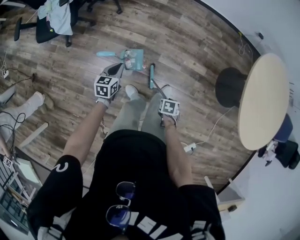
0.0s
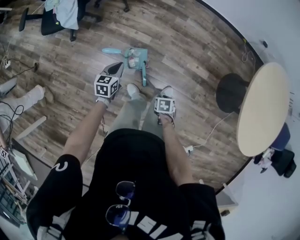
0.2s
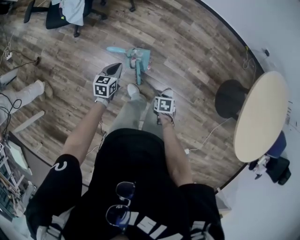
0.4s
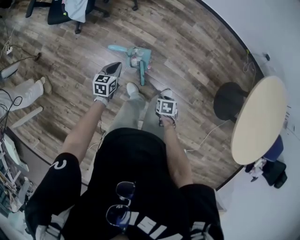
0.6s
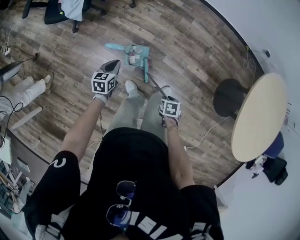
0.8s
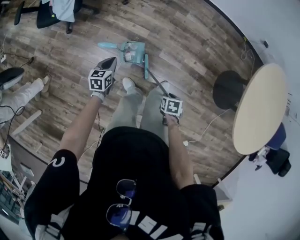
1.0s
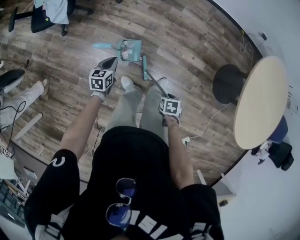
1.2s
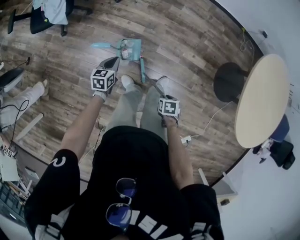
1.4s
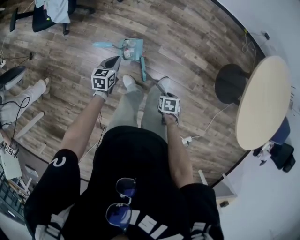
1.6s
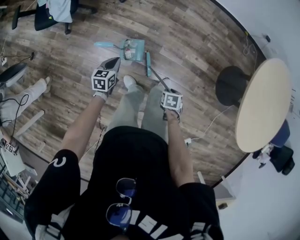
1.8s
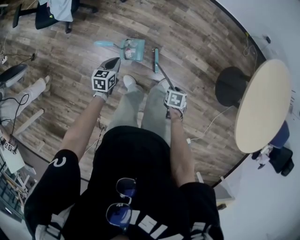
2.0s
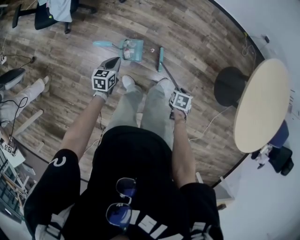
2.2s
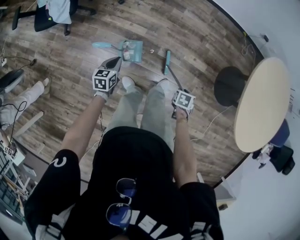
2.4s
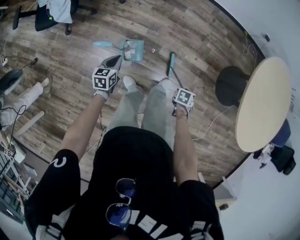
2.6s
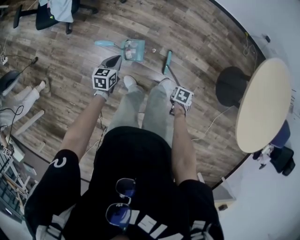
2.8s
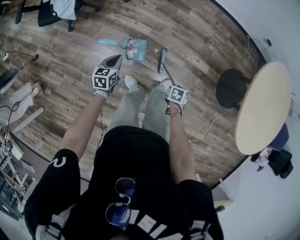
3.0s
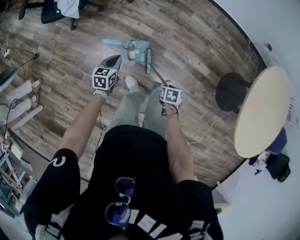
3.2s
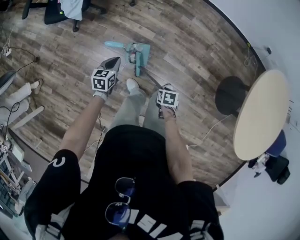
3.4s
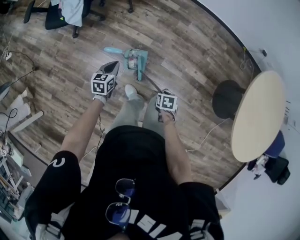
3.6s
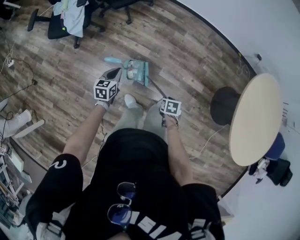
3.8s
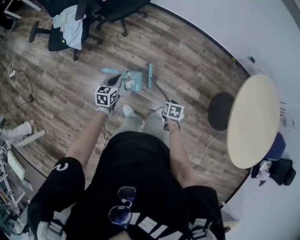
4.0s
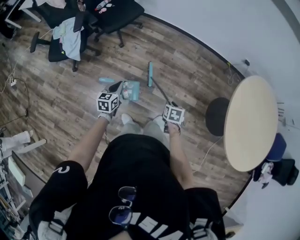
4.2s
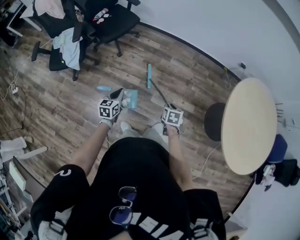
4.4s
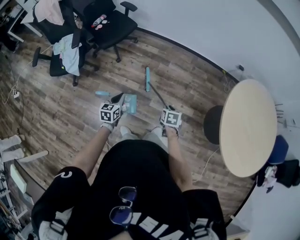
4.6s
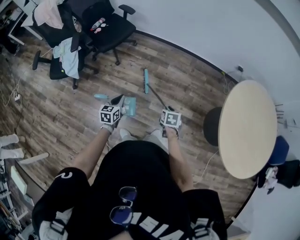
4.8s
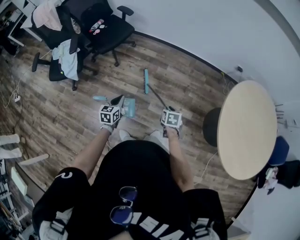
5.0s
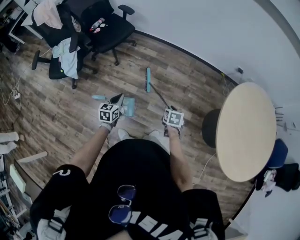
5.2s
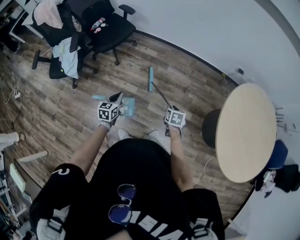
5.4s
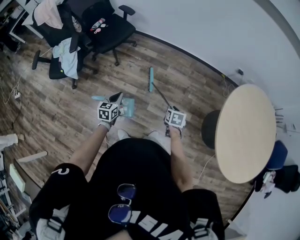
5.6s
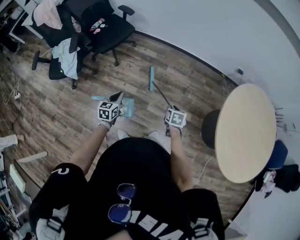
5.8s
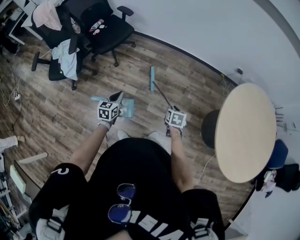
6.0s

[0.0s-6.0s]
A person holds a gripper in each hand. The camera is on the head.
3.0s to 4.4s: Both grippers travel together upward, some 15 cm. The right gripper changes its angle by roughly 30 degrees.
4.4s to 6.0s: The left gripper shifts approximately 10 cm forward and to the right. Meanwhile the right gripper goes some 10 cm to the right and forward.

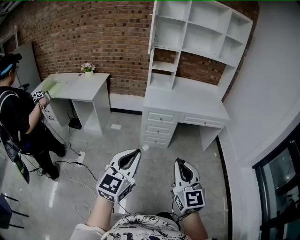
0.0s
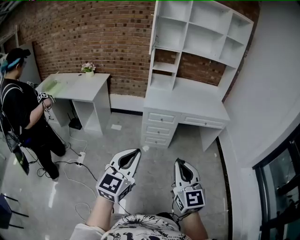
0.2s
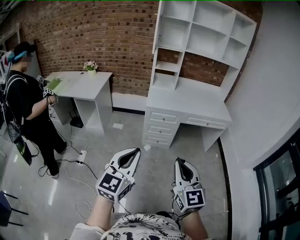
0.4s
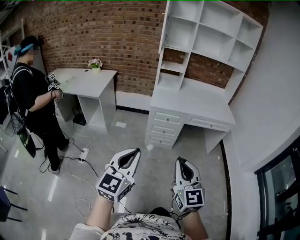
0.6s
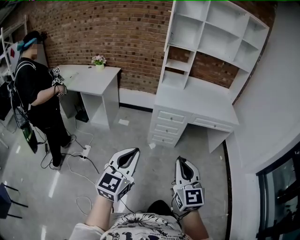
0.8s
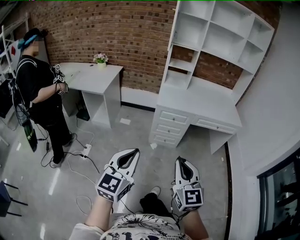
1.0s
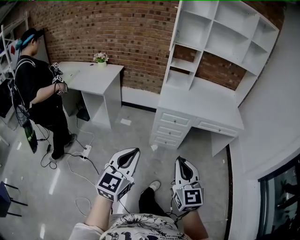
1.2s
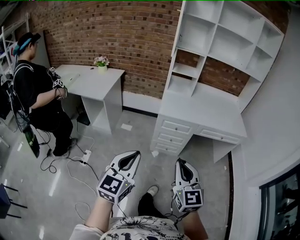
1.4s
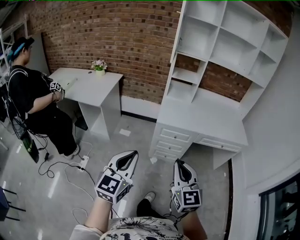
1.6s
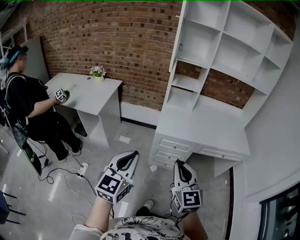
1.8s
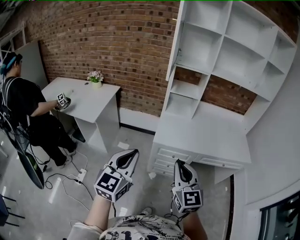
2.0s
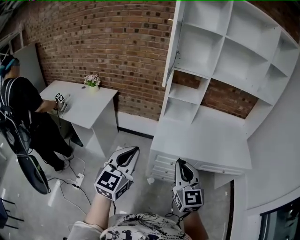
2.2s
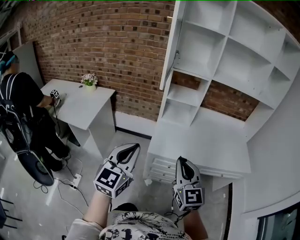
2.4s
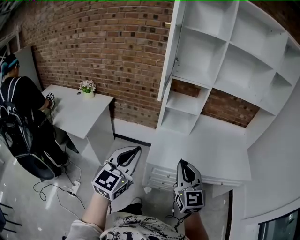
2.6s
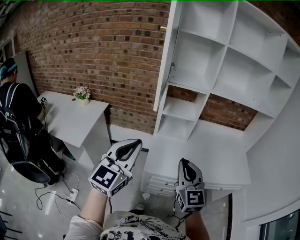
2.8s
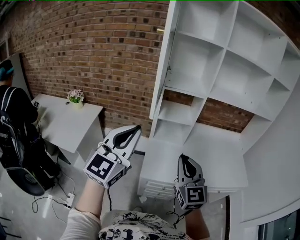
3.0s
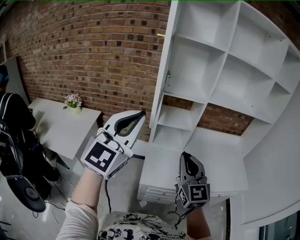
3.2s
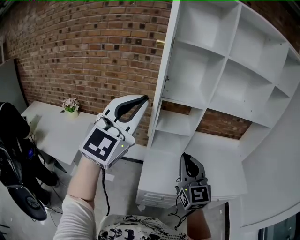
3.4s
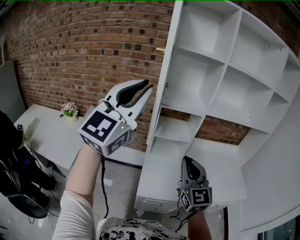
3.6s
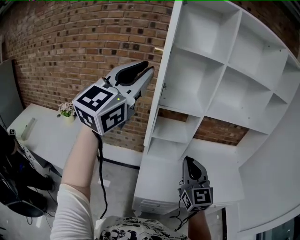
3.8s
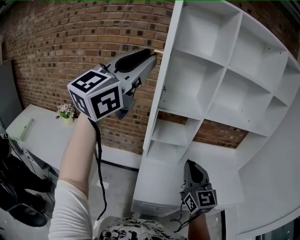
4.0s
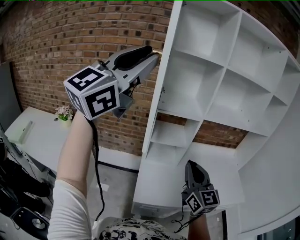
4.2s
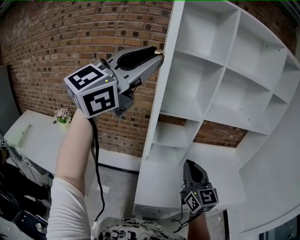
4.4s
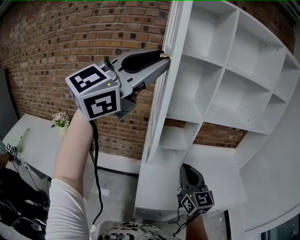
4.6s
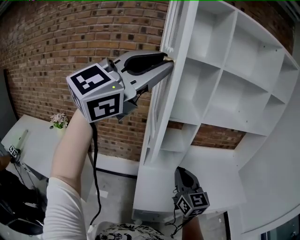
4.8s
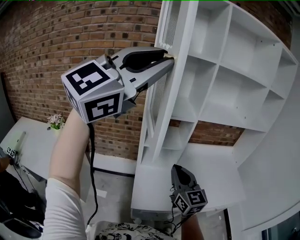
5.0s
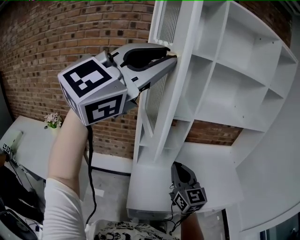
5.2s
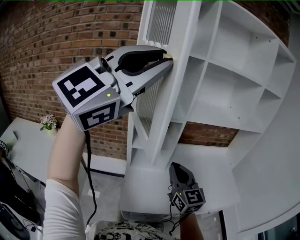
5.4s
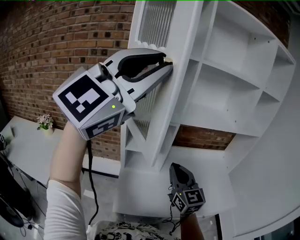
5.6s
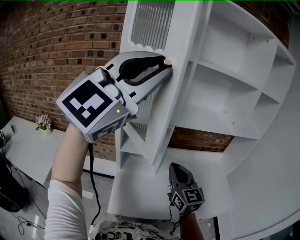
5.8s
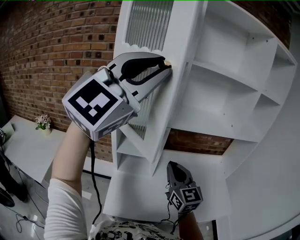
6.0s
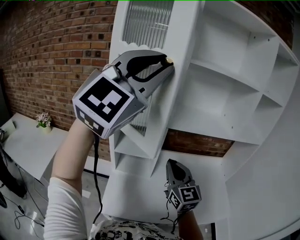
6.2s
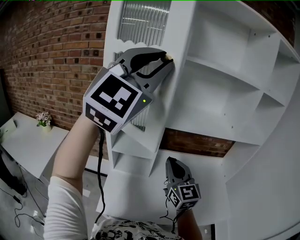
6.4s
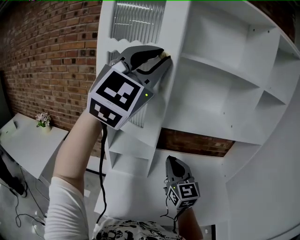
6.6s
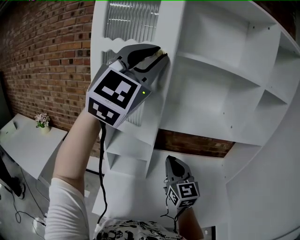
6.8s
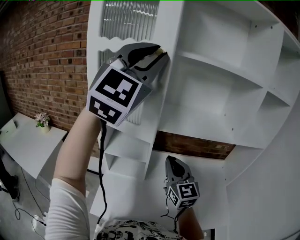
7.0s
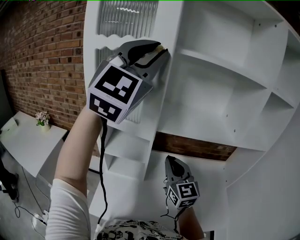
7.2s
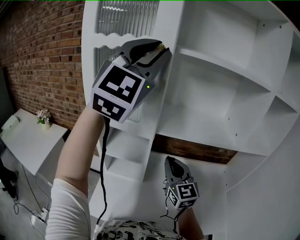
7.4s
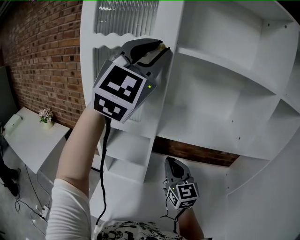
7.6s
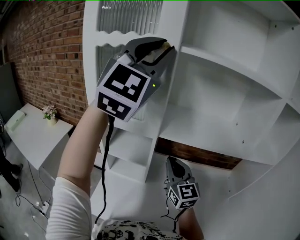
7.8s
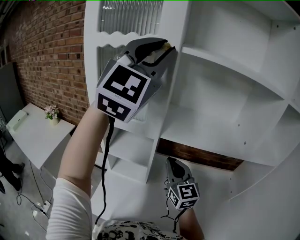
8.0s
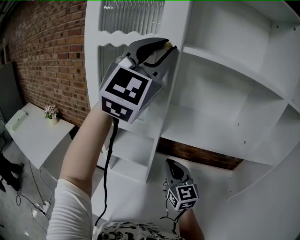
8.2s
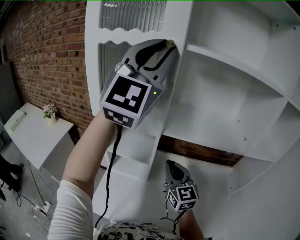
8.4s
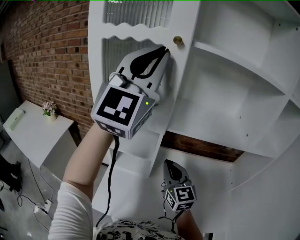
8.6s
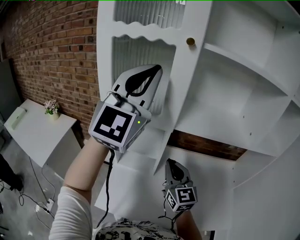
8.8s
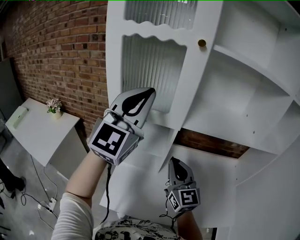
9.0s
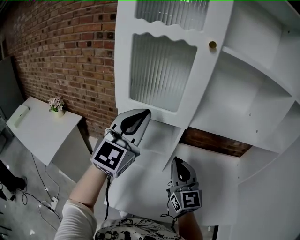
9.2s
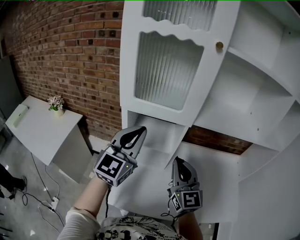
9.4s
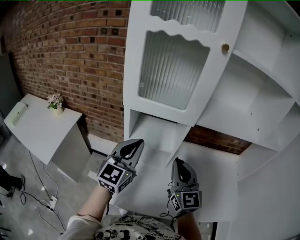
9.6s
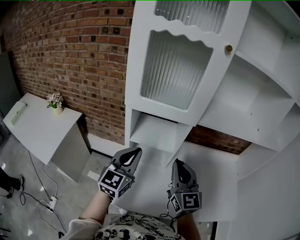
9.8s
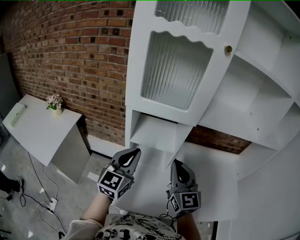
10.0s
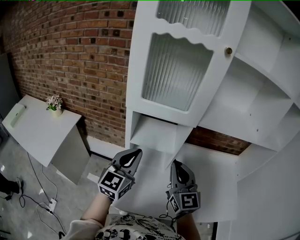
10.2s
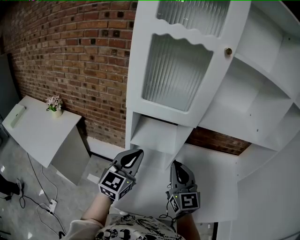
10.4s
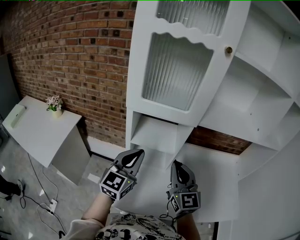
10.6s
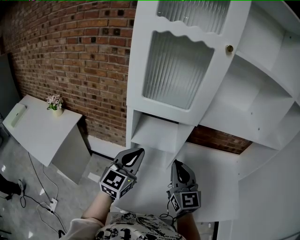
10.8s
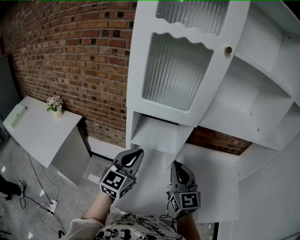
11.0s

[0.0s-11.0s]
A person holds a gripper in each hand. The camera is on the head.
0.0s to 1.6s: Both grippers move forward, roughly 25 cm.
1.6s to 3.2s: The pair of grippers is taken forward, about 50 cm. The left gripper is displaced upward by some 25 cm, and rotates roughly 30 degrees.
3.2s to 4.8s: The right gripper shifts approximately 10 cm forward, while the left gripper shifts some 20 cm upward and forward, changes its angle by about 30 degrees, and opens up.
4.8s to 6.2s: The left gripper moves to the right and forward, some 20 cm, and changes its angle by some 30 degrees; the right gripper moves forward and to the right, roughly 20 cm.
6.2s to 7.8s: The two grippers go approximately 15 cm forward and to the right.
7.8s to 9.4s: The left gripper heads downward and to the left, covering approximately 35 cm, and changes its angle by roughly 30 degrees; the right gripper heads to the left and backward, covering about 15 cm.
9.4s to 11.0s: The left gripper is displaced downward by approximately 10 cm.

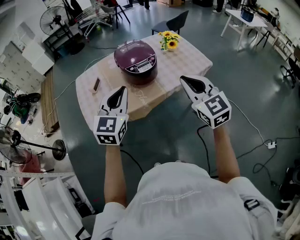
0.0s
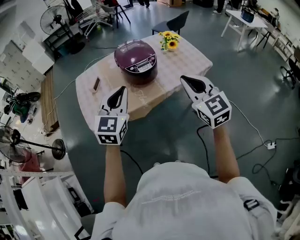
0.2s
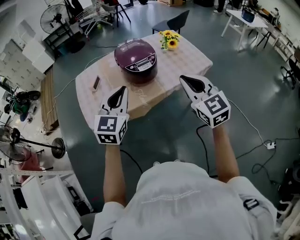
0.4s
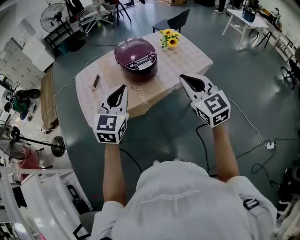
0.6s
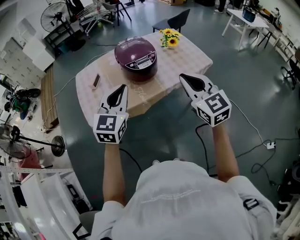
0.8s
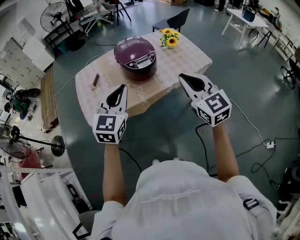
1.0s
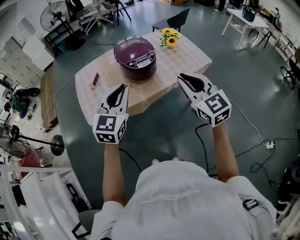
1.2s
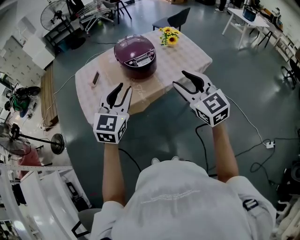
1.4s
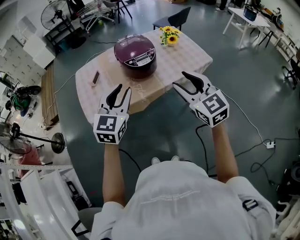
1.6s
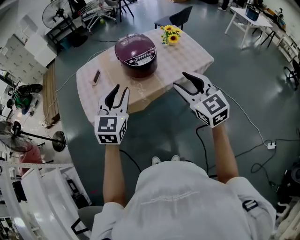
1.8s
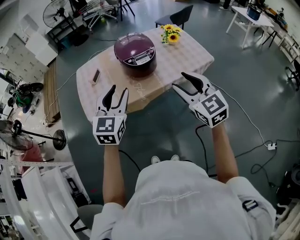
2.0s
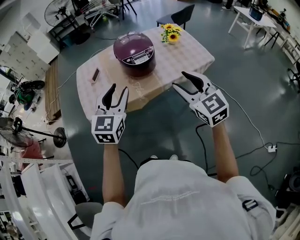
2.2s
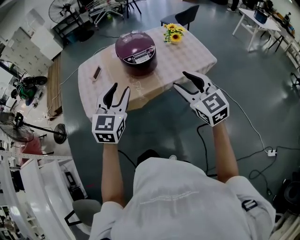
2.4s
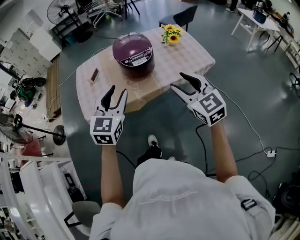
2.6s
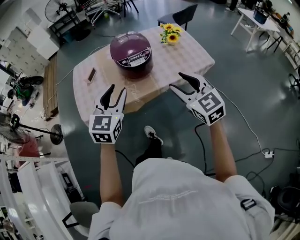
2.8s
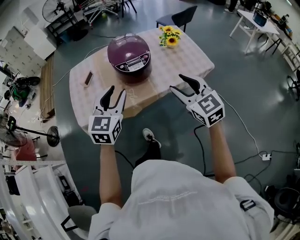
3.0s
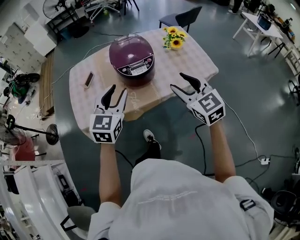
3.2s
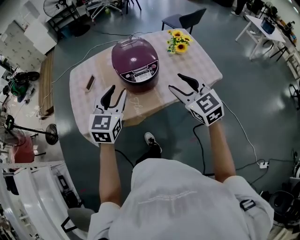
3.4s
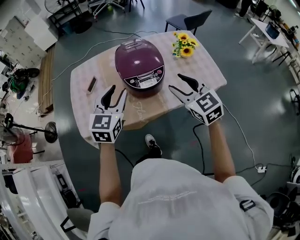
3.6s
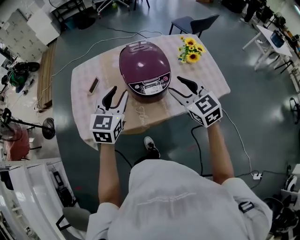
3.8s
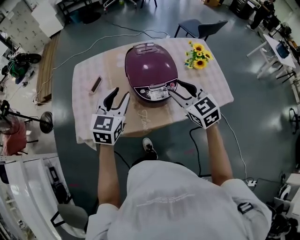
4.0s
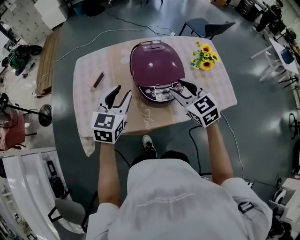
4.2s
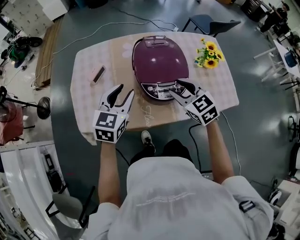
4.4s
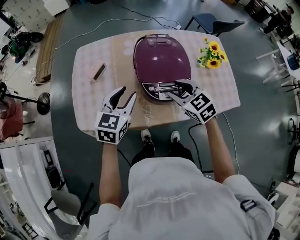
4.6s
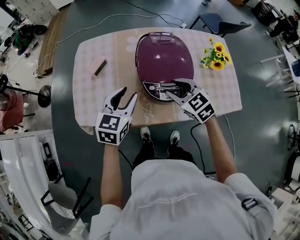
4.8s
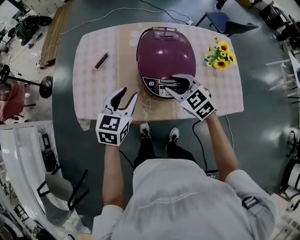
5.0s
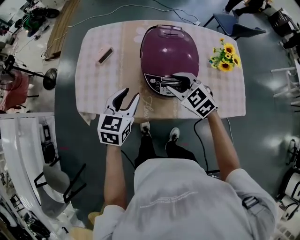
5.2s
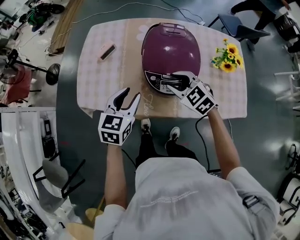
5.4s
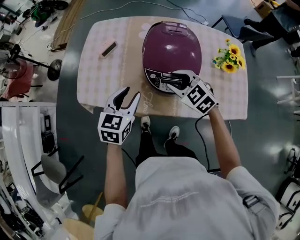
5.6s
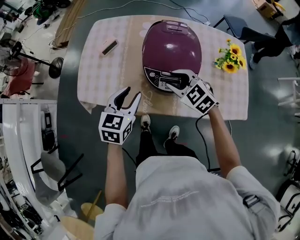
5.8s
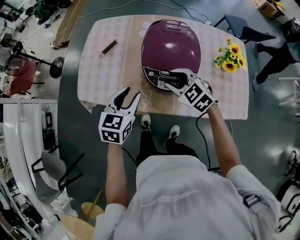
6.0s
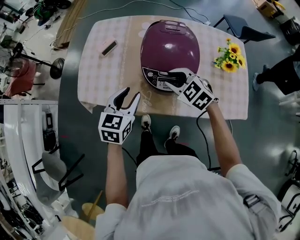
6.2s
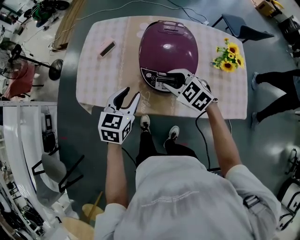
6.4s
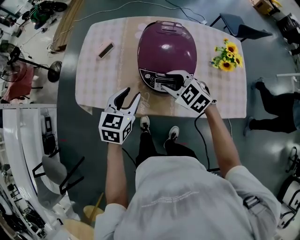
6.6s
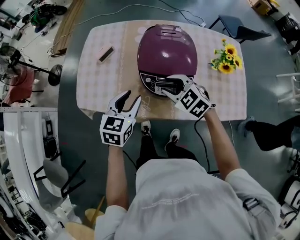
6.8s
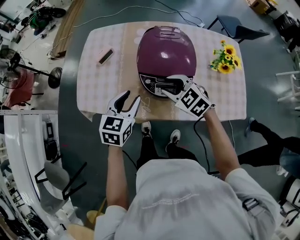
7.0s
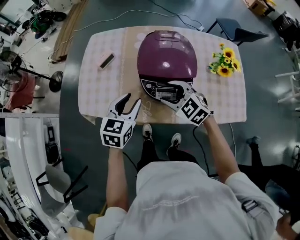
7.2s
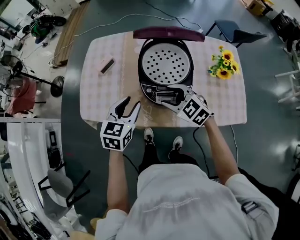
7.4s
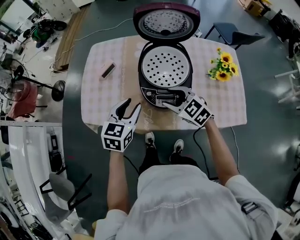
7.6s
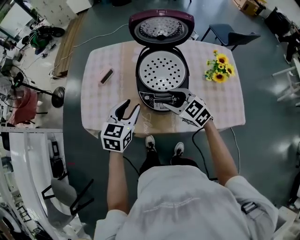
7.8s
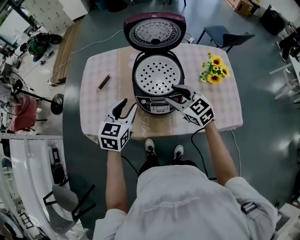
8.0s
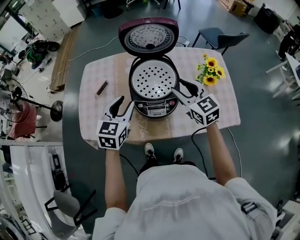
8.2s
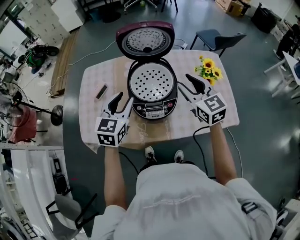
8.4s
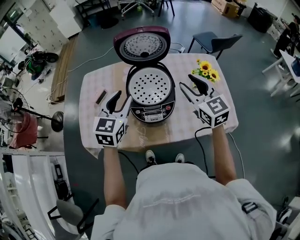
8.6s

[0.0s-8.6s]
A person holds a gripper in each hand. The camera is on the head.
0.0s to 1.4s: The right gripper opens its fingers.
1.4s to 2.8s: The left gripper shifts by roughly 5 cm; the right gripper is displaced to the right by about 5 cm.
2.8s to 4.4s: The two grippers go approximately 25 cm forward. The right gripper rotates roughly 20 degrees.
4.4s to 5.8s: The right gripper moves downward, some 5 cm, and changes its angle by roughly 30 degrees. The left gripper is displaced backward and downward by some 10 cm.
5.8s to 7.2s: The grippers make only small movements.
7.2s to 8.6s: The left gripper goes approximately 15 cm upward and forward. The right gripper is displaced upward and to the right by some 25 cm, and swivels approximately 40 degrees.
